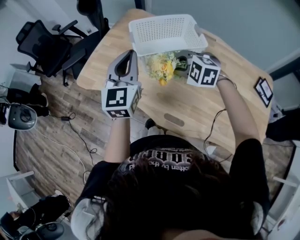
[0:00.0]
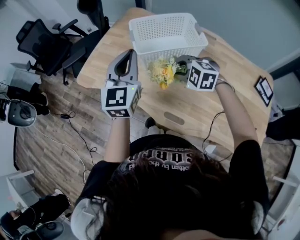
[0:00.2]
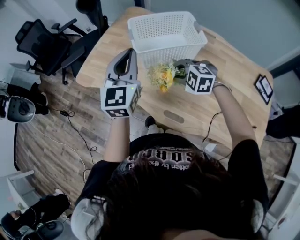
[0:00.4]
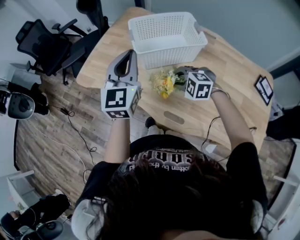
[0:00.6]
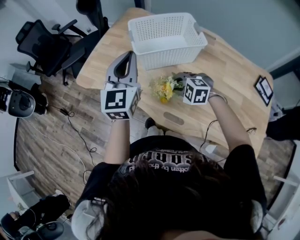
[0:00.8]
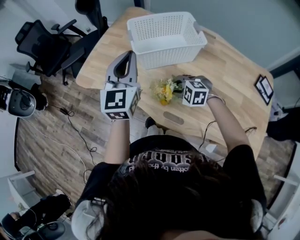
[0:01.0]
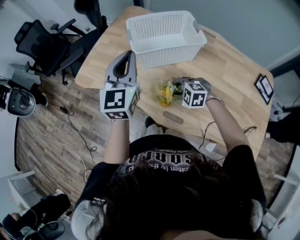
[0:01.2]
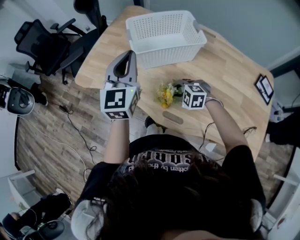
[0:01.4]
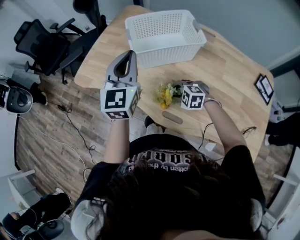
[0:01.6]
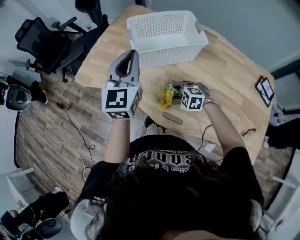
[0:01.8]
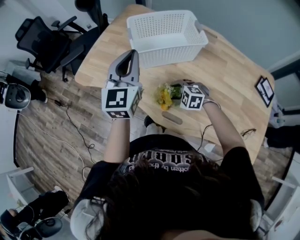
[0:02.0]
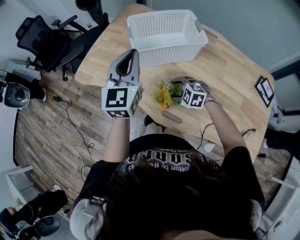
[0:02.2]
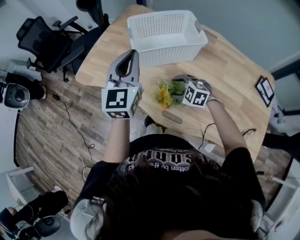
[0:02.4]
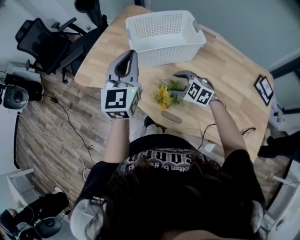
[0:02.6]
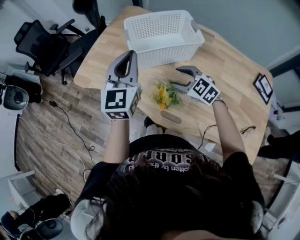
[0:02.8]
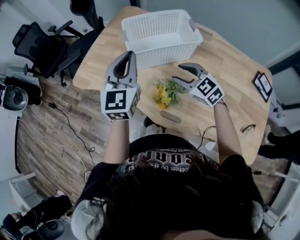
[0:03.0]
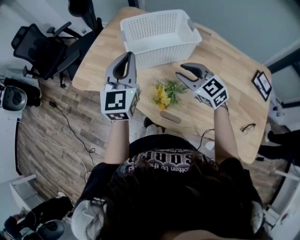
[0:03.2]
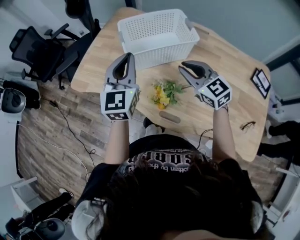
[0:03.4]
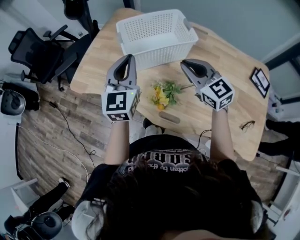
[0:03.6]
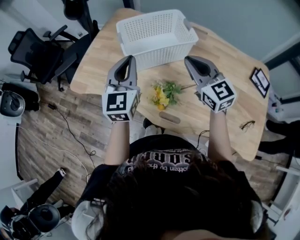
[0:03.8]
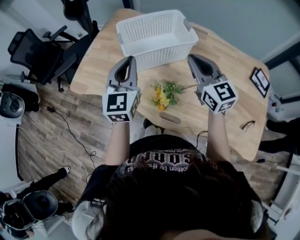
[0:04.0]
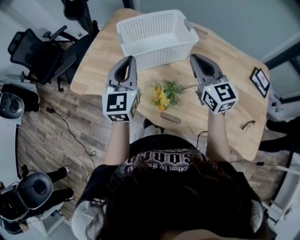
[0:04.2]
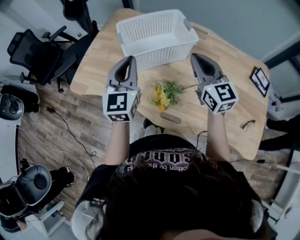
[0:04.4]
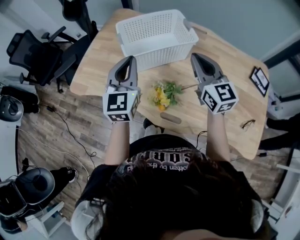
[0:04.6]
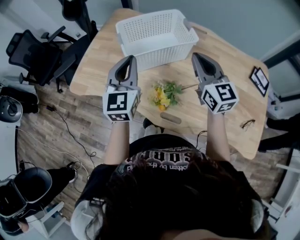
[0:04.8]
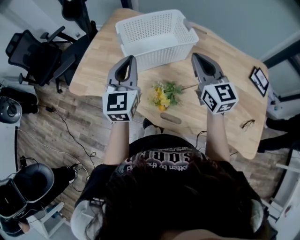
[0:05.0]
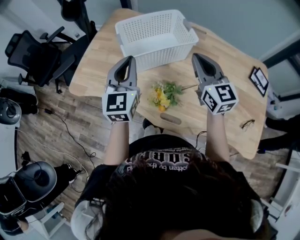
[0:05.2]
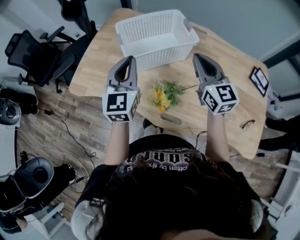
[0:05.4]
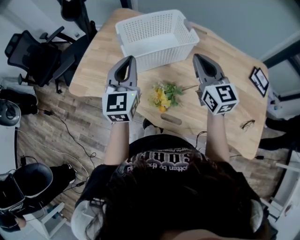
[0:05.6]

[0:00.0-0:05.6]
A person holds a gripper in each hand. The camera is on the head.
0:00.0 to 0:01.4: The right gripper goes approximately 20 cm downward and backward.
0:01.4 to 0:02.8: The right gripper moves upward, about 10 cm, rotates some 30 degrees, and opens its fingers.
0:02.8 to 0:04.2: The right gripper goes approximately 15 cm upward and to the right, angles its fingers upward, by about 30 degrees, and closes up.
0:04.2 to 0:05.6: The two grippers keep their place.

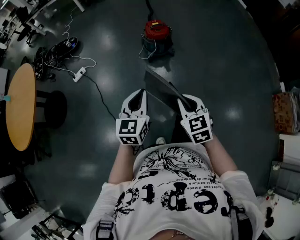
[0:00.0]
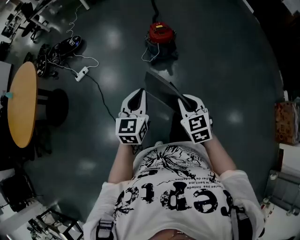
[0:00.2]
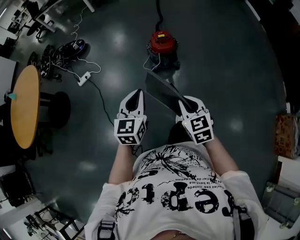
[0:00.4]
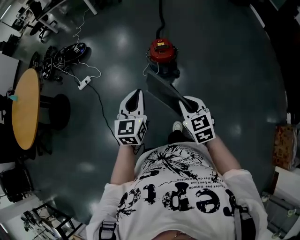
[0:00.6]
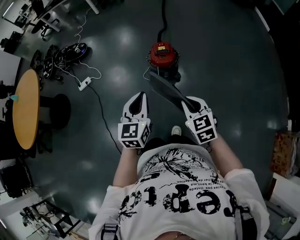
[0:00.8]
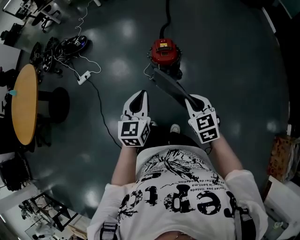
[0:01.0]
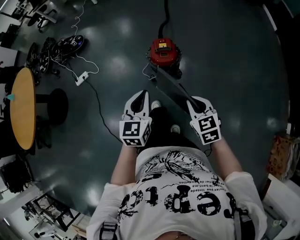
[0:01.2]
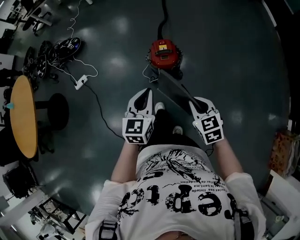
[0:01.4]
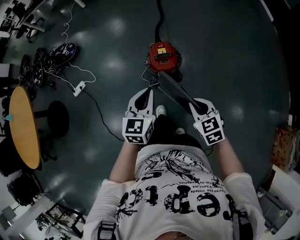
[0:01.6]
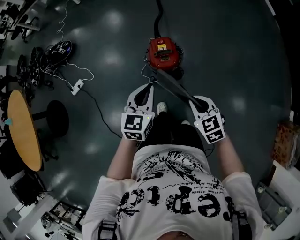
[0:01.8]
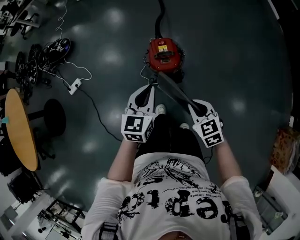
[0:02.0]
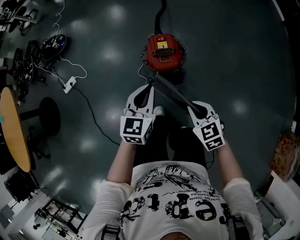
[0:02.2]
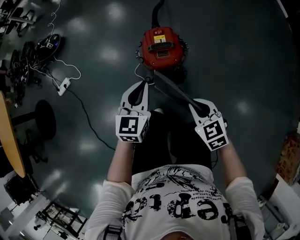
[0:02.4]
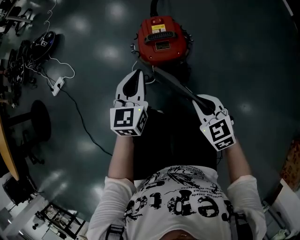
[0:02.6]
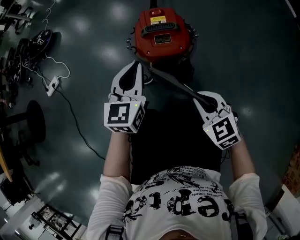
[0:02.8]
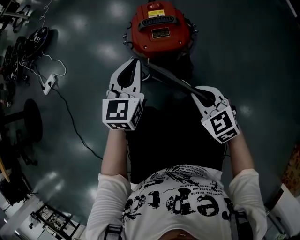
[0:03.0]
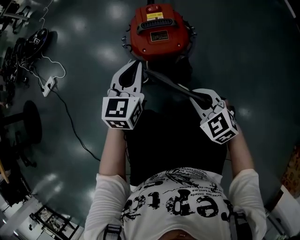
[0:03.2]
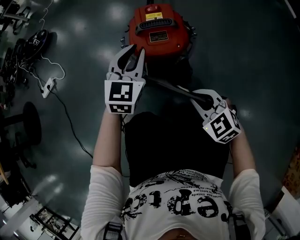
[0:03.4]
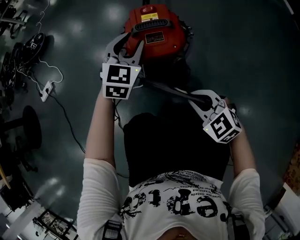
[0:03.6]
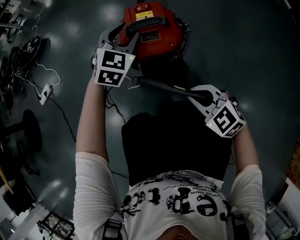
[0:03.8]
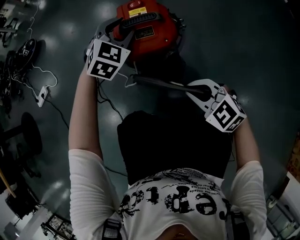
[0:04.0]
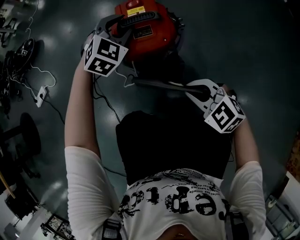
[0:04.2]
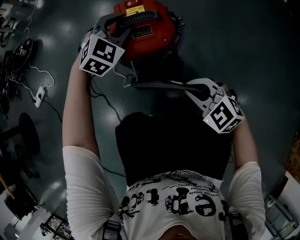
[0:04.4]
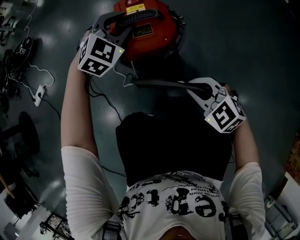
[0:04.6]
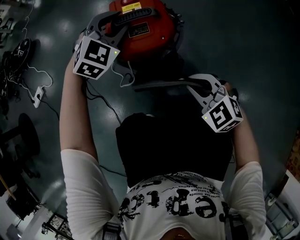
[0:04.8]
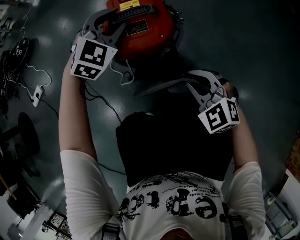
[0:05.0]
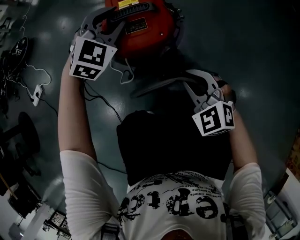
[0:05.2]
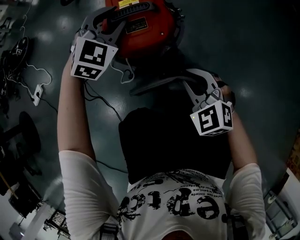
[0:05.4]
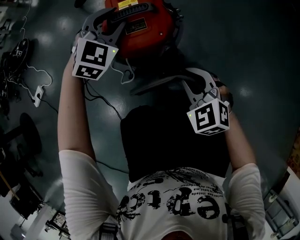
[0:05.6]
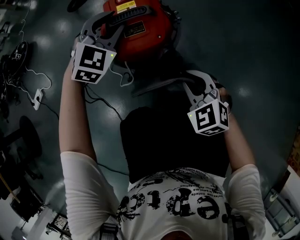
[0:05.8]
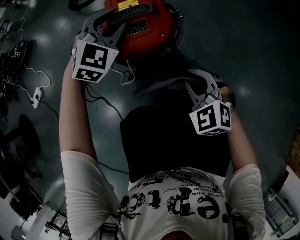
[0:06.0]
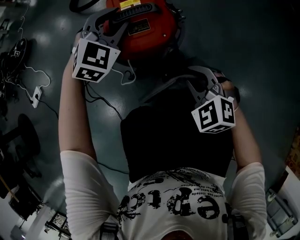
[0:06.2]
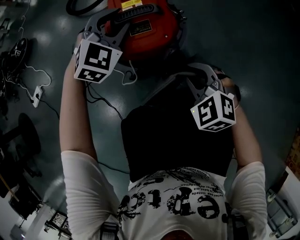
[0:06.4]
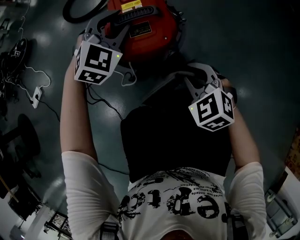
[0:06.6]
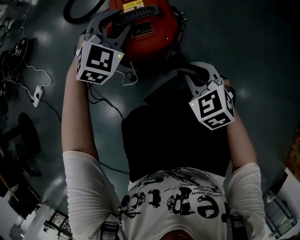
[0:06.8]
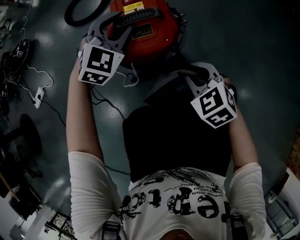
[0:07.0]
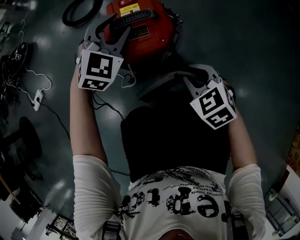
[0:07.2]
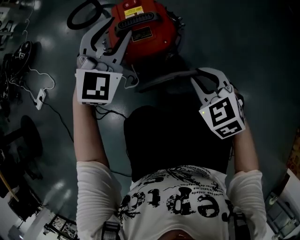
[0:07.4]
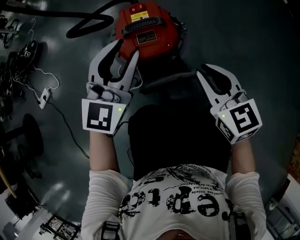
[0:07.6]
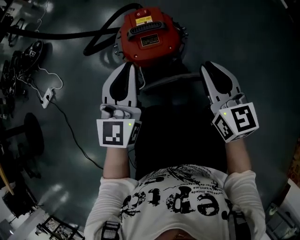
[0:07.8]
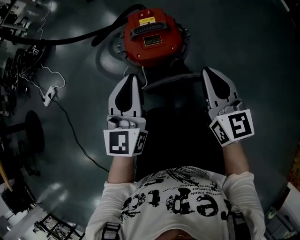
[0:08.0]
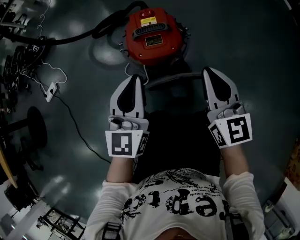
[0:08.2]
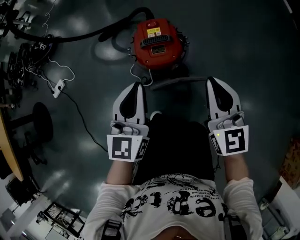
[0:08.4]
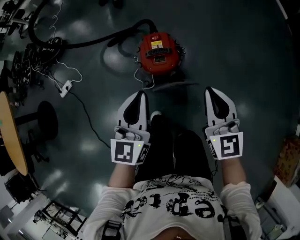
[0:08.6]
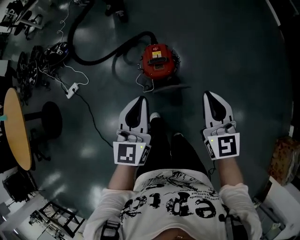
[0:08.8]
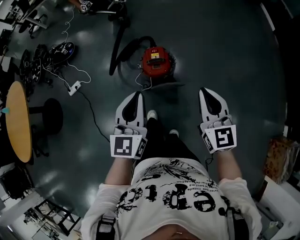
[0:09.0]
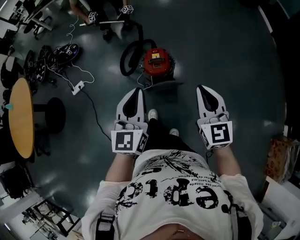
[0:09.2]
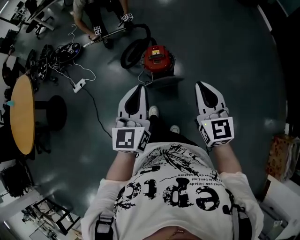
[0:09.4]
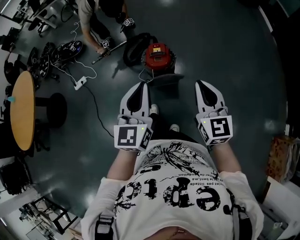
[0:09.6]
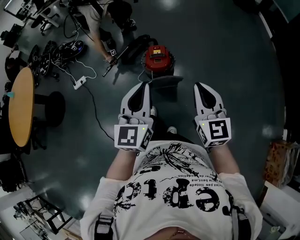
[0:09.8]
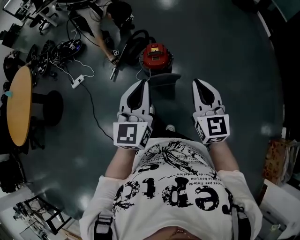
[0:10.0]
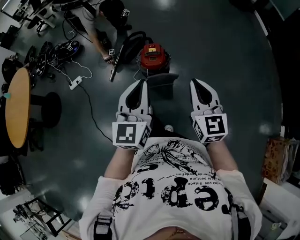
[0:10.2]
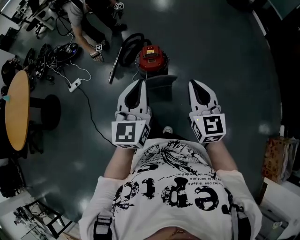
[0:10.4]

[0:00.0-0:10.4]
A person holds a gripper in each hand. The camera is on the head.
0:00.0 to 0:01.4: The pair of grippers is taken forward and to the right, some 40 cm.
0:01.4 to 0:03.0: The right gripper heads downward, covering roughly 50 cm. The left gripper travels downward and forward by some 50 cm.
0:03.0 to 0:04.4: The left gripper shifts approximately 15 cm forward and to the right, twists about 40 degrees clockwise, seen from behind, and opens its fingers.
0:04.4 to 0:06.0: The right gripper rotates roughly 20 degrees.
0:06.0 to 0:07.4: The left gripper goes roughly 10 cm upward.
0:07.4 to 0:09.0: The left gripper moves upward and backward, about 60 cm, turns by some 50 degrees, and closes up, while the right gripper shifts about 60 cm upward, and tips its fingers upward by approximately 30 degrees.
0:09.0 to 0:10.4: The grippers both shift backward by roughly 15 cm.

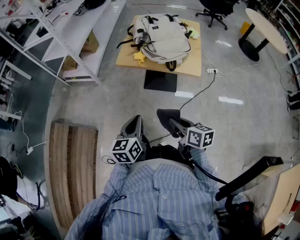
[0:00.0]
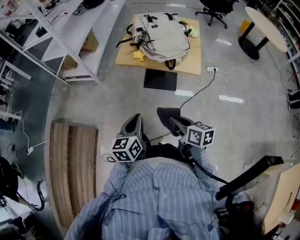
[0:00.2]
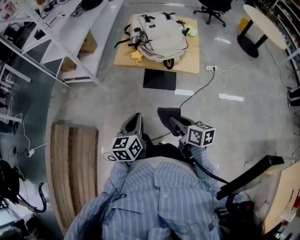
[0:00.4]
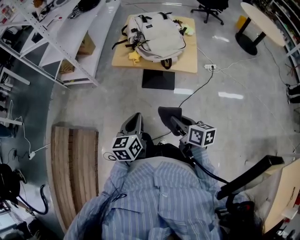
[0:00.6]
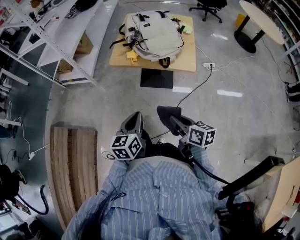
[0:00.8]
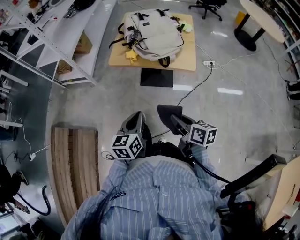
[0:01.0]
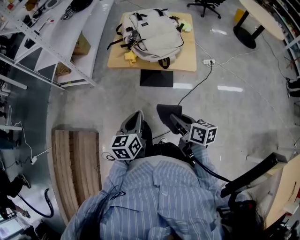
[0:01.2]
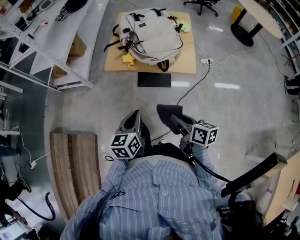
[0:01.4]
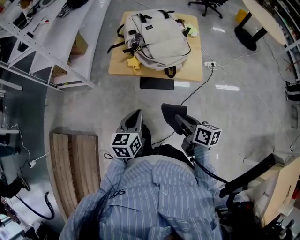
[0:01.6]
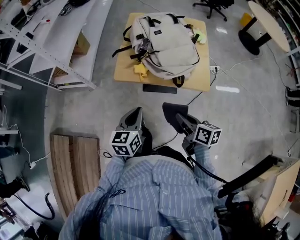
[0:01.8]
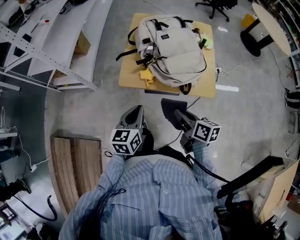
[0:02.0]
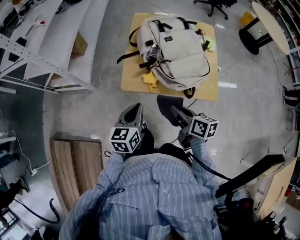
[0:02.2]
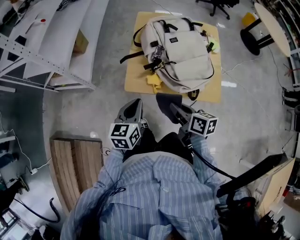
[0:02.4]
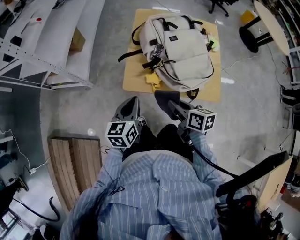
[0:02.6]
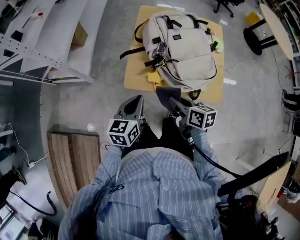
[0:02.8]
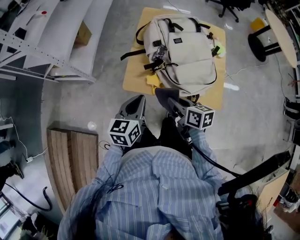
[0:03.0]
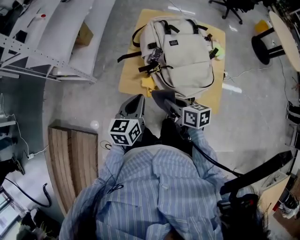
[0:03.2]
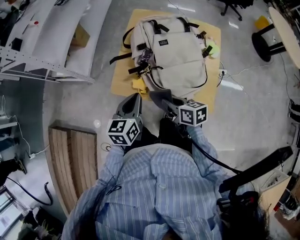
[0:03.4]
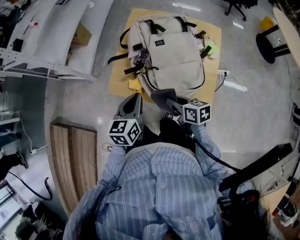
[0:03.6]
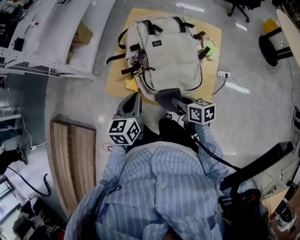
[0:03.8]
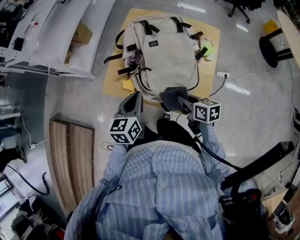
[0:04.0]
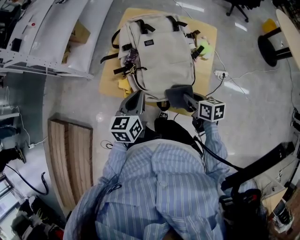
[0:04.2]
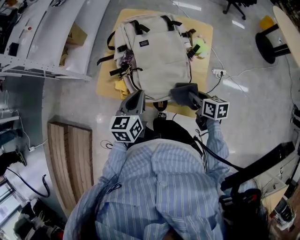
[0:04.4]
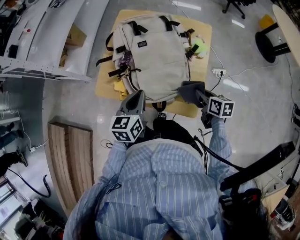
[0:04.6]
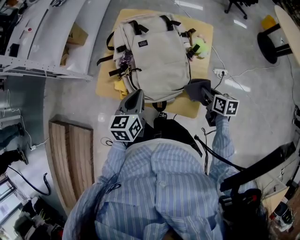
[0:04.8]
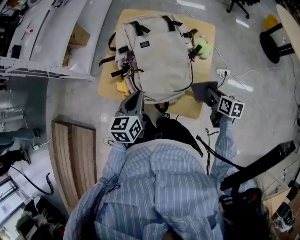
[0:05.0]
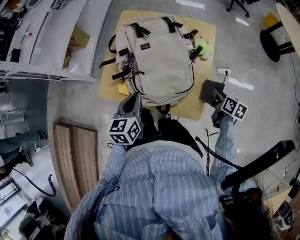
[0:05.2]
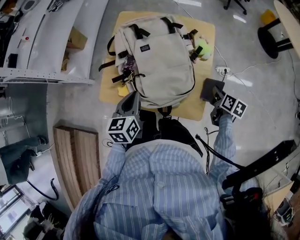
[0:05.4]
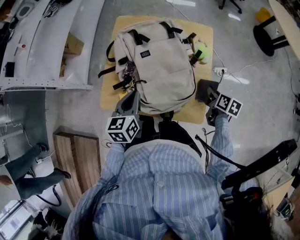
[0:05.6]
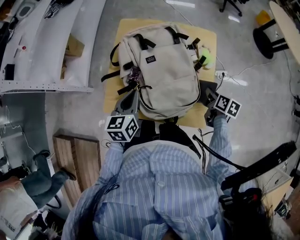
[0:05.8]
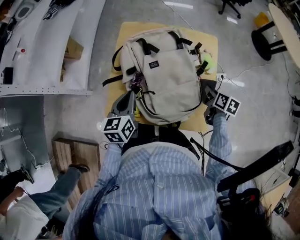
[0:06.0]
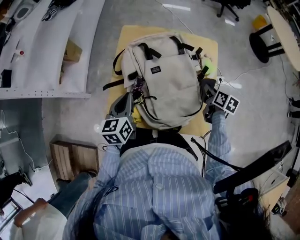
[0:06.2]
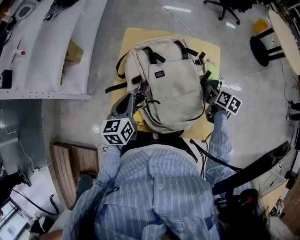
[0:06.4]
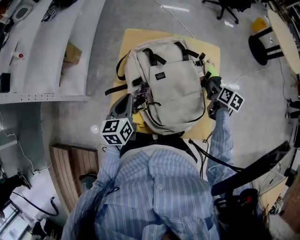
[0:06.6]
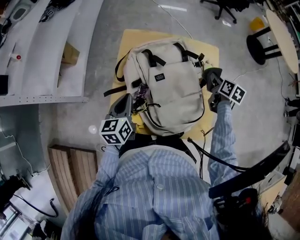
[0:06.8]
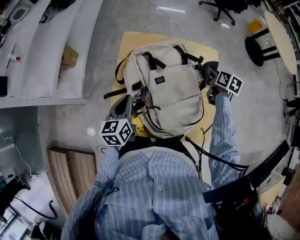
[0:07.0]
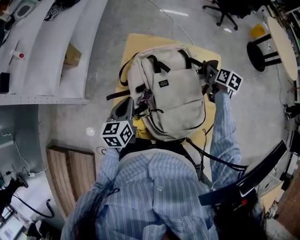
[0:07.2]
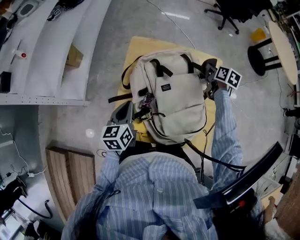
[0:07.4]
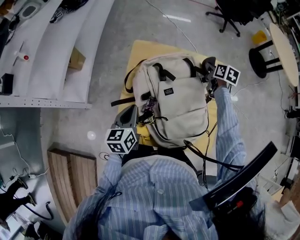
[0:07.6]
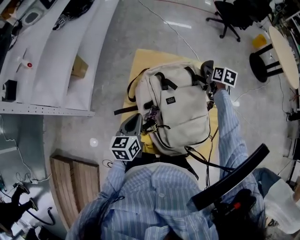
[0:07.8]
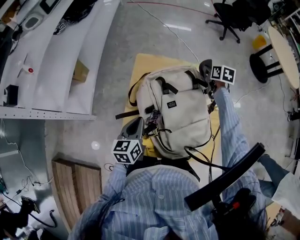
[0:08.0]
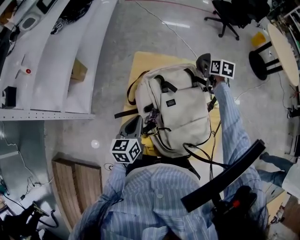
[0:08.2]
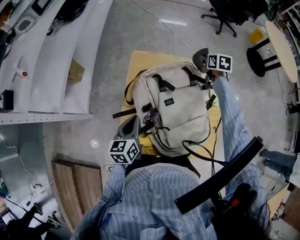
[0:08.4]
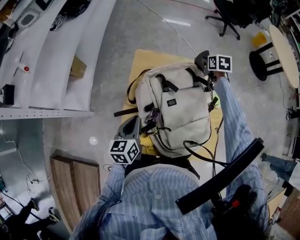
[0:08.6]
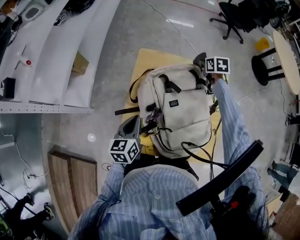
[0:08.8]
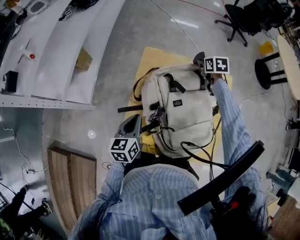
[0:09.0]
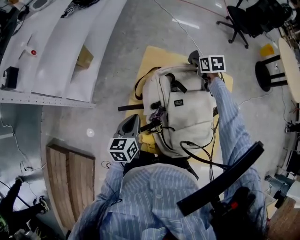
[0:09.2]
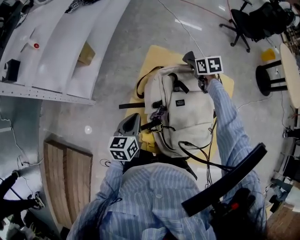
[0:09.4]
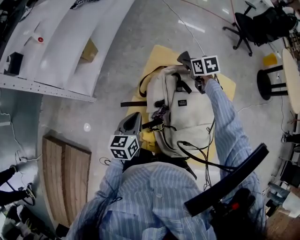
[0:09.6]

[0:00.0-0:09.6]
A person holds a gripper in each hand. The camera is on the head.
0:00.0 to 0:01.6: The grippers both shift forward by some 10 cm.
0:01.6 to 0:03.2: The grippers both shift forward by some 25 cm. The right gripper swivels roughly 20 degrees.
0:03.2 to 0:04.8: The left gripper moves to the right, about 15 cm. Meanwhile the right gripper moves to the right, some 35 cm.
0:04.8 to 0:06.4: The right gripper moves forward, about 15 cm, and changes its angle by about 30 degrees, while the left gripper shifts some 20 cm forward and to the left.
0:06.4 to 0:08.0: The right gripper is displaced forward and to the left by some 25 cm.
0:08.0 to 0:09.6: The right gripper moves to the left, approximately 20 cm, and swivels roughly 40 degrees. Meanwhile the left gripper goes some 5 cm to the left.
